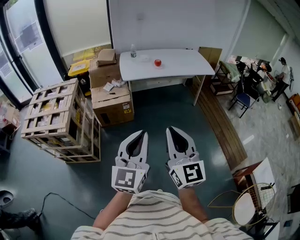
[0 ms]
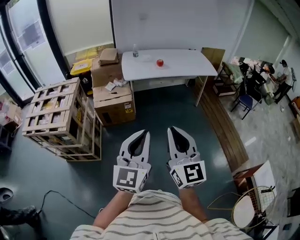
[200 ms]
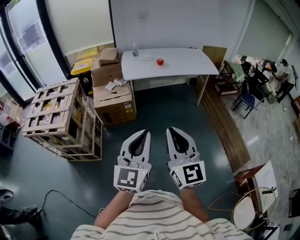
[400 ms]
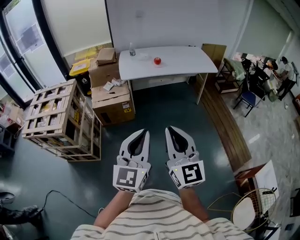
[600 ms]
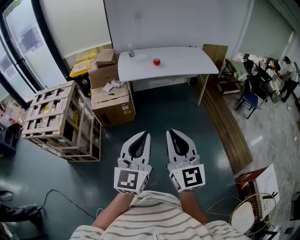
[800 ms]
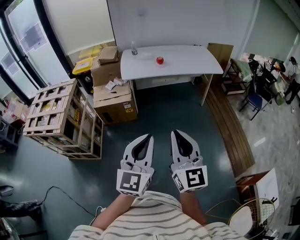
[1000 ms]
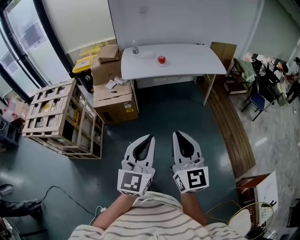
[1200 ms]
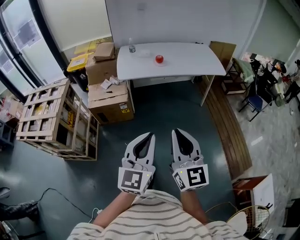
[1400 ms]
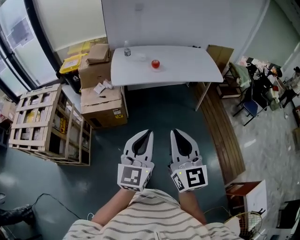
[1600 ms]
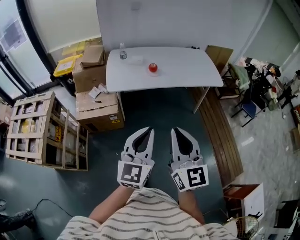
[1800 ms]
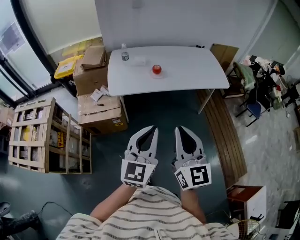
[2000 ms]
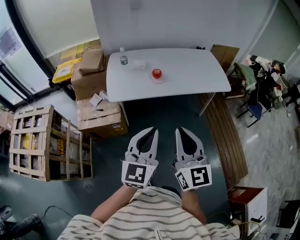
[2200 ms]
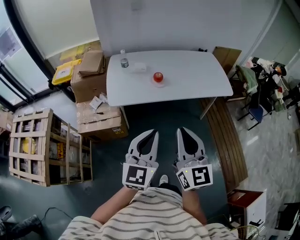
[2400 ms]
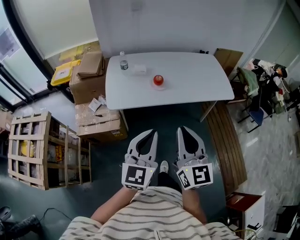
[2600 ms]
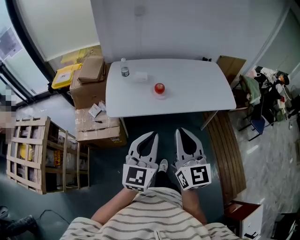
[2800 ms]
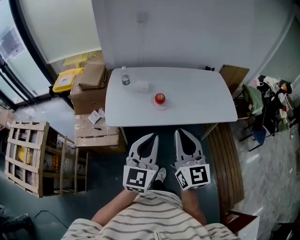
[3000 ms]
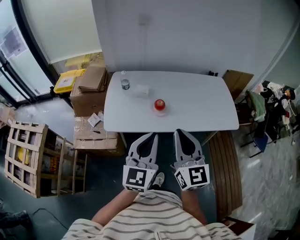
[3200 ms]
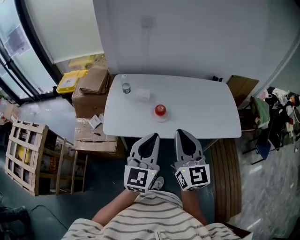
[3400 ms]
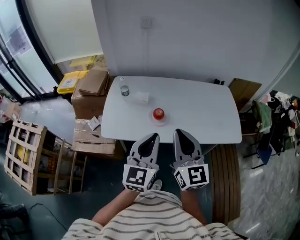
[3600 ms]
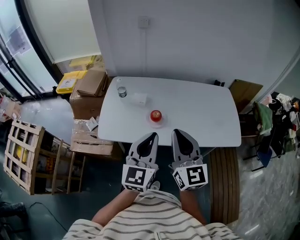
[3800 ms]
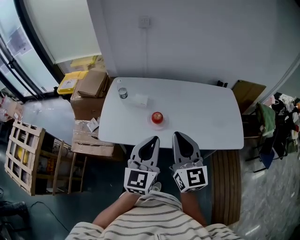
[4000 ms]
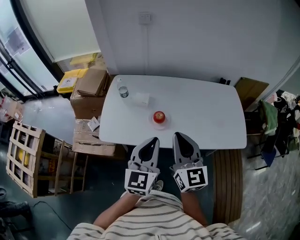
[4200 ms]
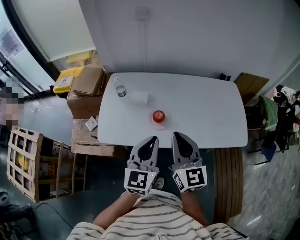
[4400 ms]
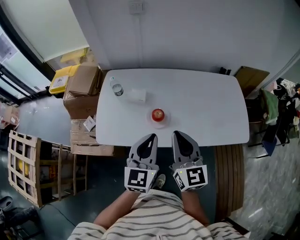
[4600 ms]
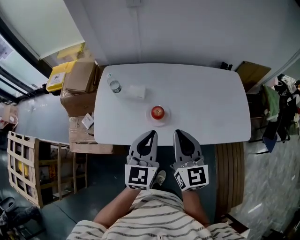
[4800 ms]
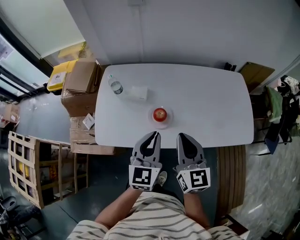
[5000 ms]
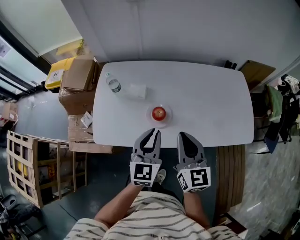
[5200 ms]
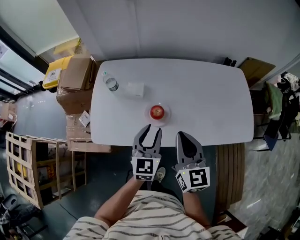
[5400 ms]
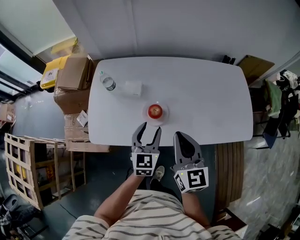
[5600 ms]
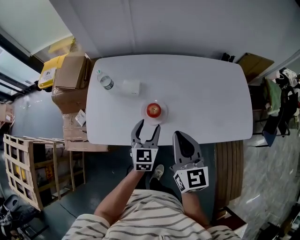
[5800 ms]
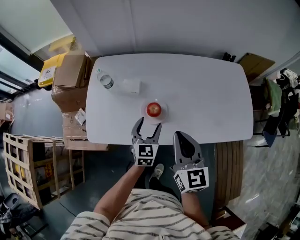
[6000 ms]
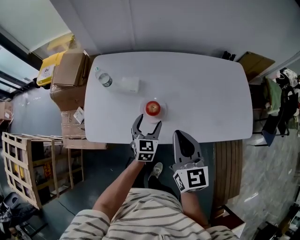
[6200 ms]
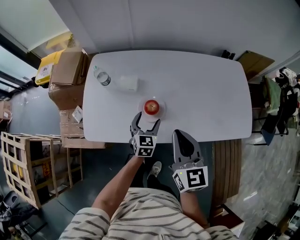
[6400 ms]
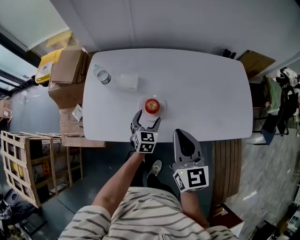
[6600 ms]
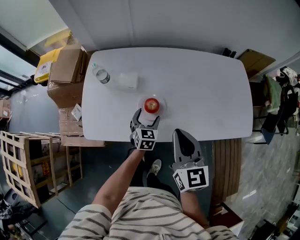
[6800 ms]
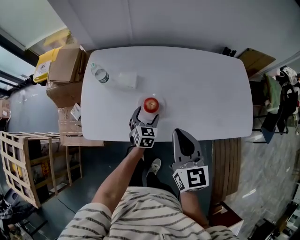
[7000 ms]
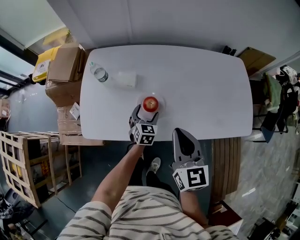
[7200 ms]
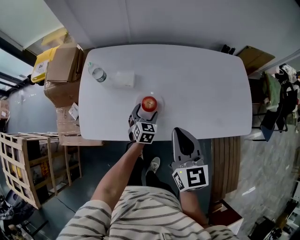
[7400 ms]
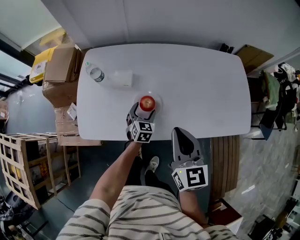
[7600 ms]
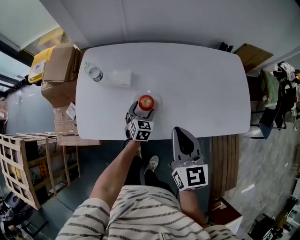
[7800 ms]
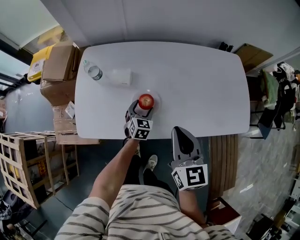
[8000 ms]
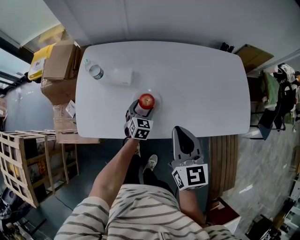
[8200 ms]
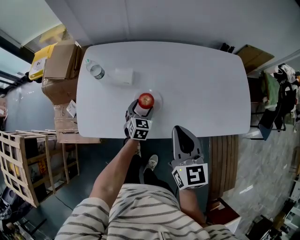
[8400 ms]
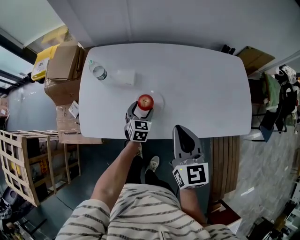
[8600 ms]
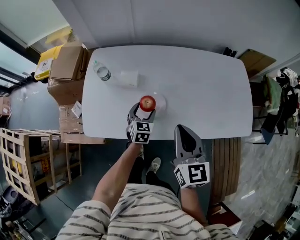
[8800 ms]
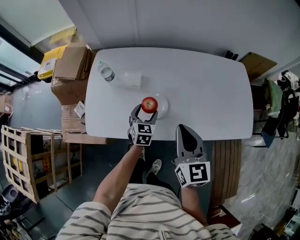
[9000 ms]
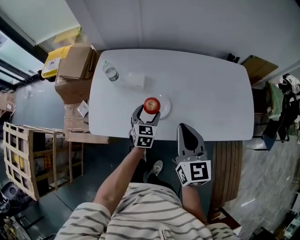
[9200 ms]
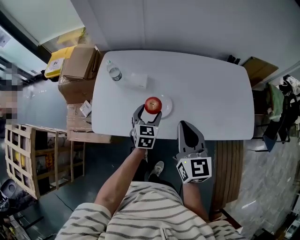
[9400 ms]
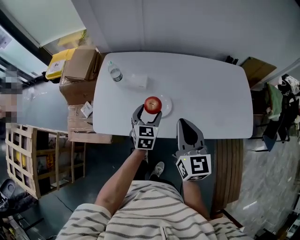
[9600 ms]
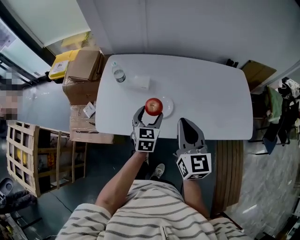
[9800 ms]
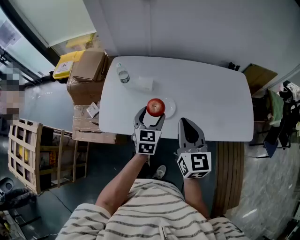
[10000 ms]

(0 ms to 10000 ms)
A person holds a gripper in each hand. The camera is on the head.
0 ms - 1400 ms: The grippers both shift forward and to the right by roughly 20 cm.
1400 ms - 2800 ms: The pair of grippers is taken forward, roughly 40 cm.
2800 ms - 4200 ms: The right gripper heads forward, covering some 25 cm. Meanwhile the left gripper shifts roughly 25 cm forward and to the right.
4200 ms - 5800 ms: The right gripper travels downward and forward by about 15 cm; the left gripper is displaced downward and forward by approximately 25 cm, and opens its fingers.
5800 ms - 7200 ms: The left gripper travels downward and forward by some 15 cm.
7200 ms - 8600 ms: The grippers stay close to where they were, moving slightly.
8600 ms - 10000 ms: The right gripper travels upward by roughly 5 cm, while the left gripper goes approximately 20 cm upward and backward.

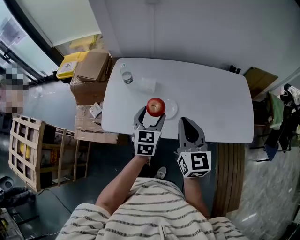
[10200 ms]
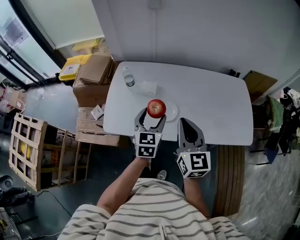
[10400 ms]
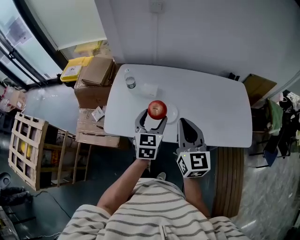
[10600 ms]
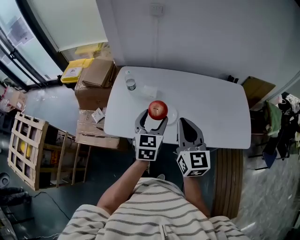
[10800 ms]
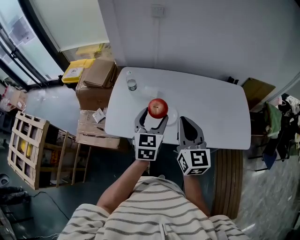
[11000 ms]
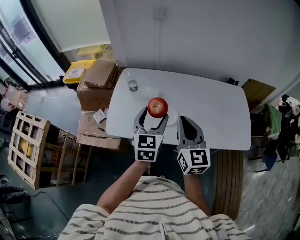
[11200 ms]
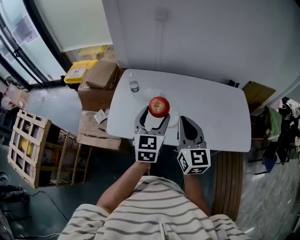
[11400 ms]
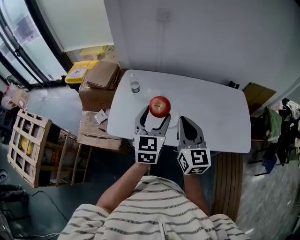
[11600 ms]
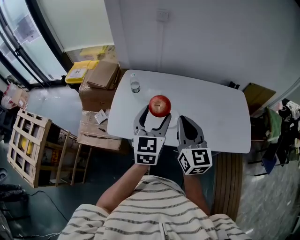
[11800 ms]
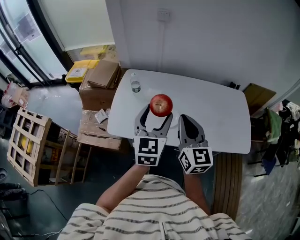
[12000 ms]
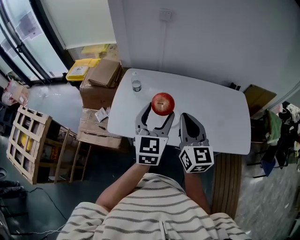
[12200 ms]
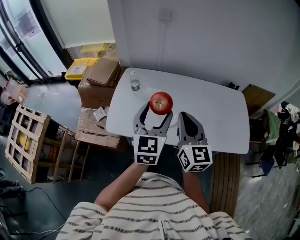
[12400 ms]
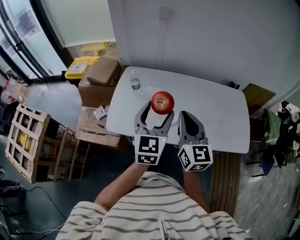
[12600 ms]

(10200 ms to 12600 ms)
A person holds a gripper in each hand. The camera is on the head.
10200 ms - 11400 ms: The left gripper goes about 10 cm upward.
11400 ms - 12600 ms: The grippers move only a little.

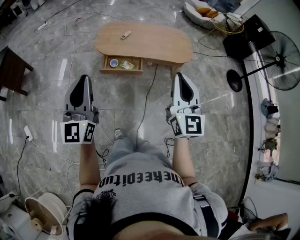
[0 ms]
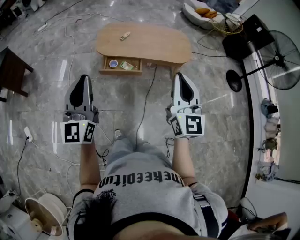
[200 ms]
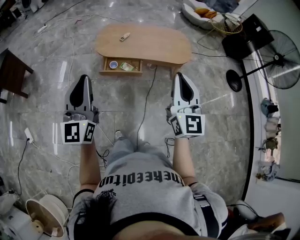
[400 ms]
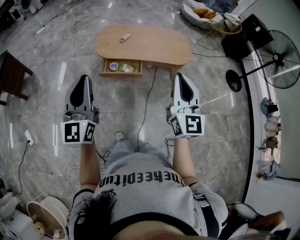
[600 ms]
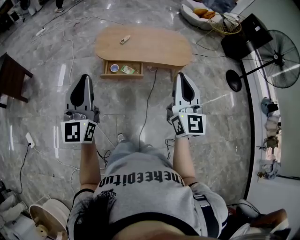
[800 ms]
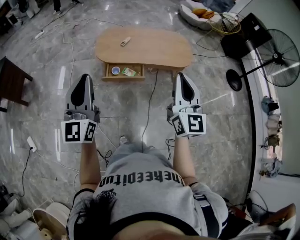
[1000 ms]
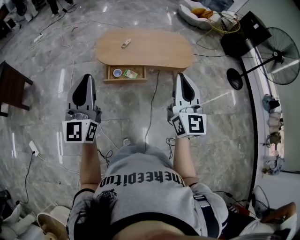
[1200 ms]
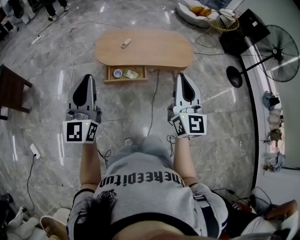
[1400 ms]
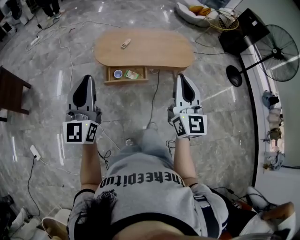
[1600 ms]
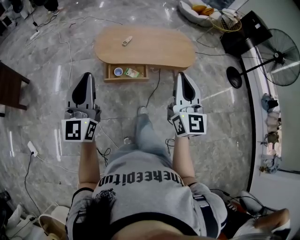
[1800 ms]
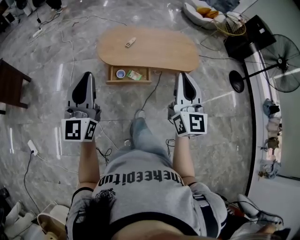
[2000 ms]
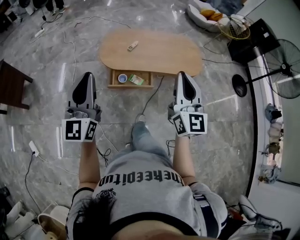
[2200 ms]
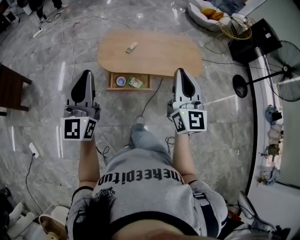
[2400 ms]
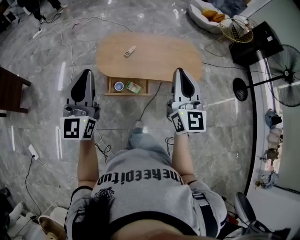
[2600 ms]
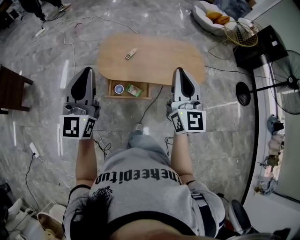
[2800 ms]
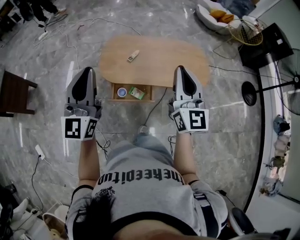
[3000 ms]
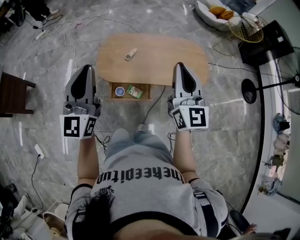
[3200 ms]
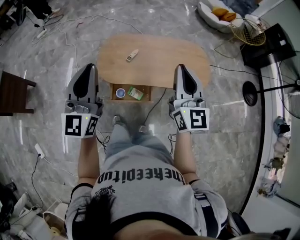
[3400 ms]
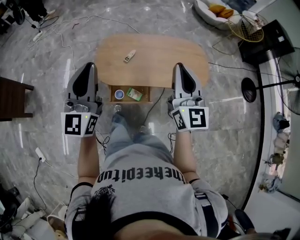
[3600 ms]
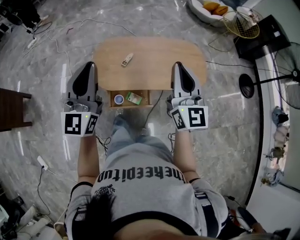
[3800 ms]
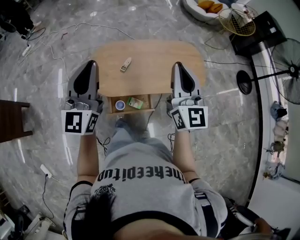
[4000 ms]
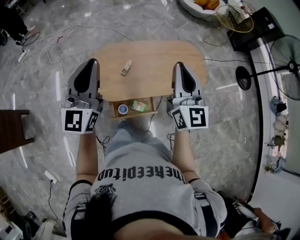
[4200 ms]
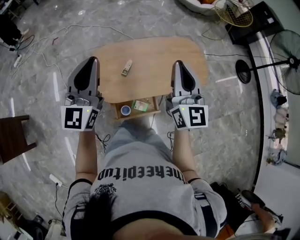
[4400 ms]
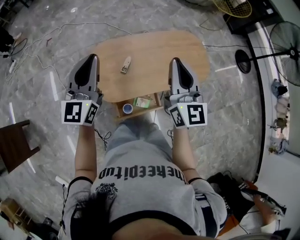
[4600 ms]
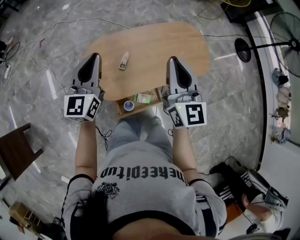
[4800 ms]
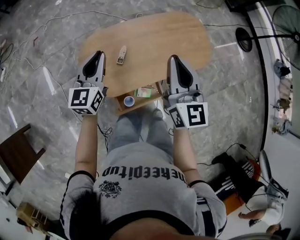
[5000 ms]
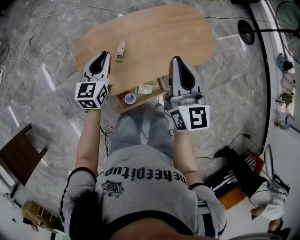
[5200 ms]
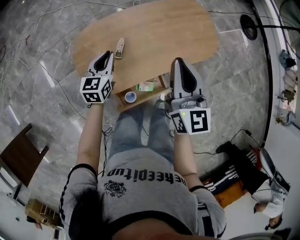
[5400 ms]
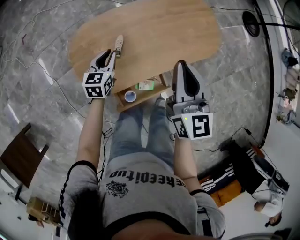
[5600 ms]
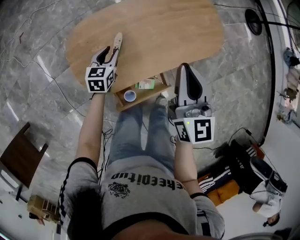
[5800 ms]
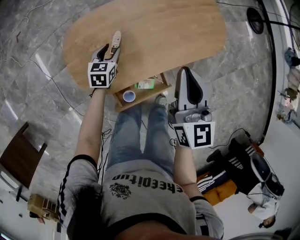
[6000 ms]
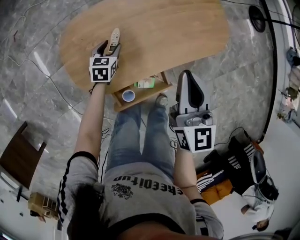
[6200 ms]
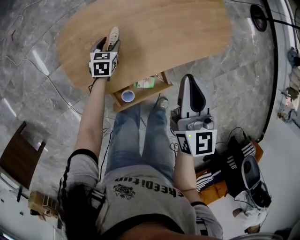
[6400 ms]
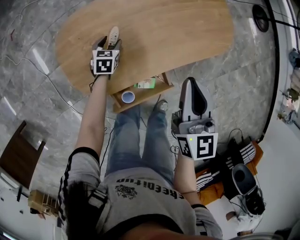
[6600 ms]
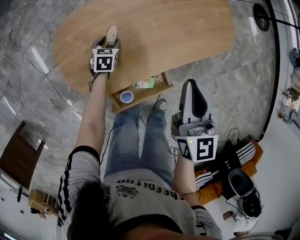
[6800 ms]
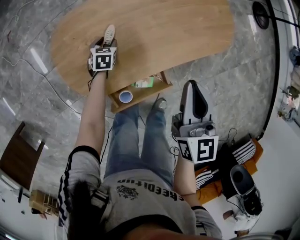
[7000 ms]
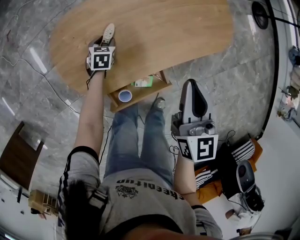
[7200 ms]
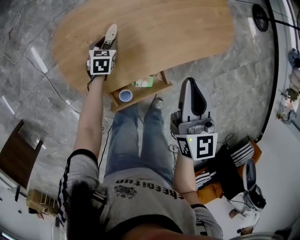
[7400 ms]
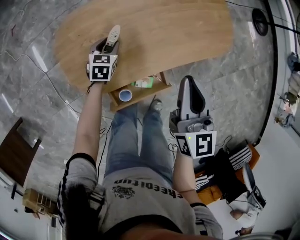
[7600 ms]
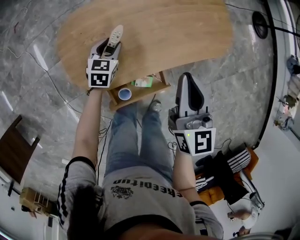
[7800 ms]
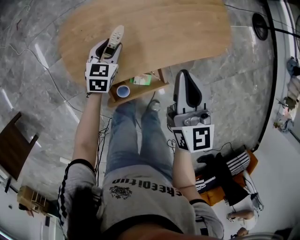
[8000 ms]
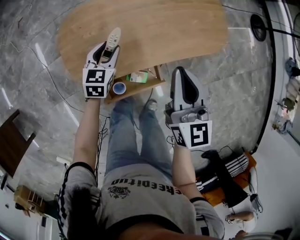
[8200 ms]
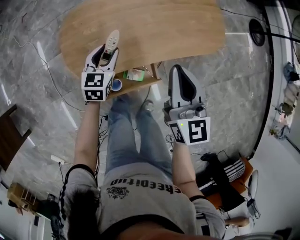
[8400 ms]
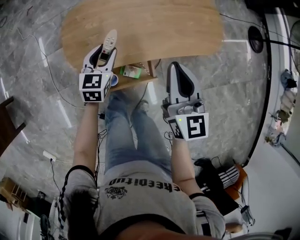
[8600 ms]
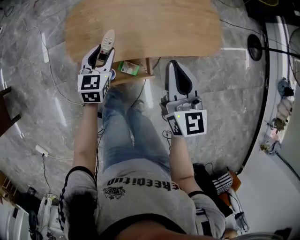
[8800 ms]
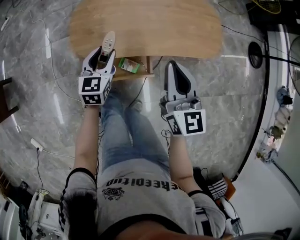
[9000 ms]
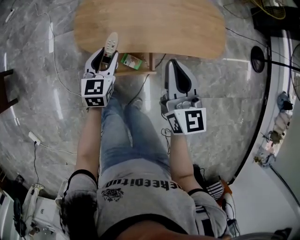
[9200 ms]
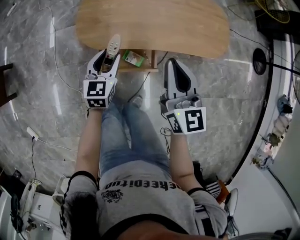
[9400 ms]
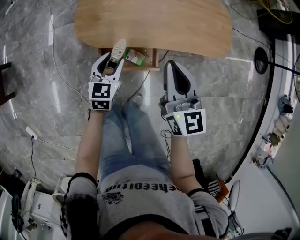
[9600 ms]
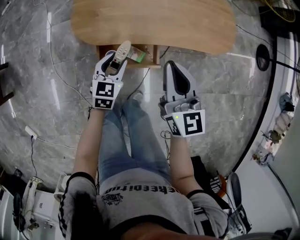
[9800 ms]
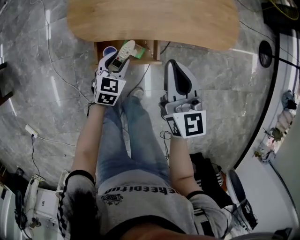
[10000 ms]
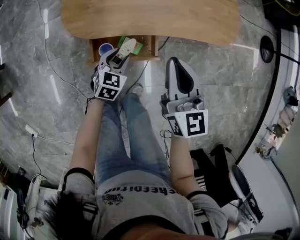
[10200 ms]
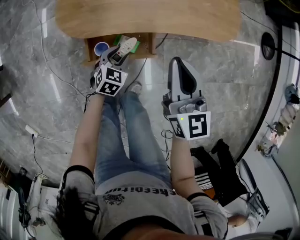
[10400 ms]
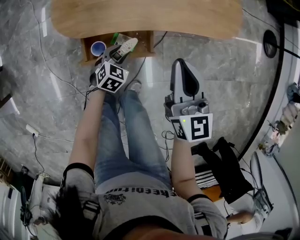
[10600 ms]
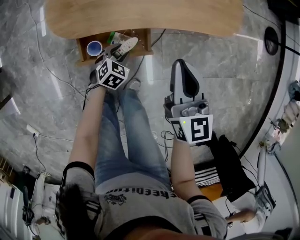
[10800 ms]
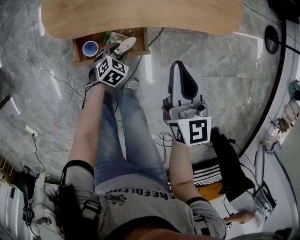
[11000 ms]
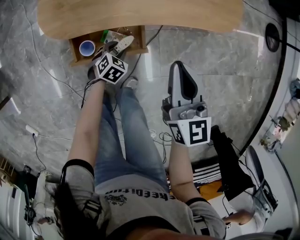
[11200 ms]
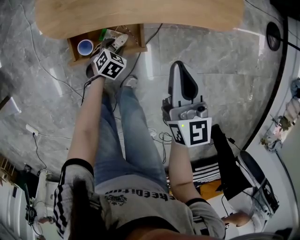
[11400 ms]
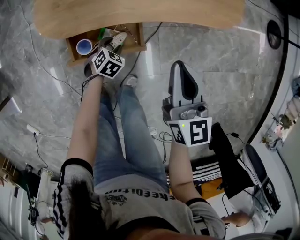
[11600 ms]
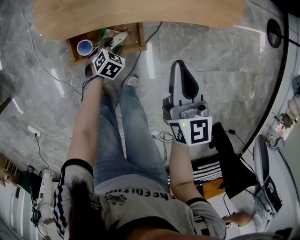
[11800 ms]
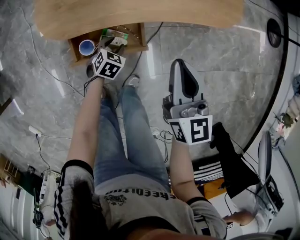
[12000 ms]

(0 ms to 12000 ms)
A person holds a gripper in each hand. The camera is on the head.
0 ms - 1600 ms: The right gripper travels to the left and forward by roughly 10 cm. Meanwhile the left gripper goes roughly 10 cm forward and to the left.
1600 ms - 3000 ms: The grippers both shift forward by approximately 30 cm.
3000 ms - 4400 ms: The two grippers go roughly 25 cm forward.
4400 ms - 6000 ms: The right gripper travels downward by approximately 25 cm, and swivels roughly 30 degrees, while the left gripper is displaced downward by about 50 cm, tilts its fingers about 50 degrees downward, and opens its fingers.
6000 ms - 7600 ms: The right gripper changes place by some 5 cm, while the left gripper is displaced downward by roughly 5 cm.
7600 ms - 9000 ms: The left gripper heads backward and upward, covering approximately 30 cm, and turns by approximately 30 degrees; the right gripper travels backward and upward by some 15 cm, and swivels about 20 degrees.
9000 ms - 10400 ms: The right gripper moves downward, approximately 10 cm. The left gripper goes roughly 25 cm downward and backward, and swivels some 30 degrees.
10400 ms - 12000 ms: The right gripper moves to the right and downward, approximately 10 cm, while the left gripper moves downward, about 10 cm.
